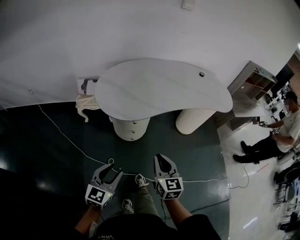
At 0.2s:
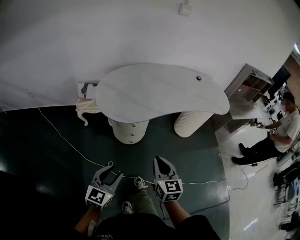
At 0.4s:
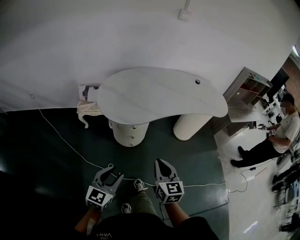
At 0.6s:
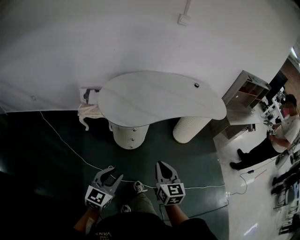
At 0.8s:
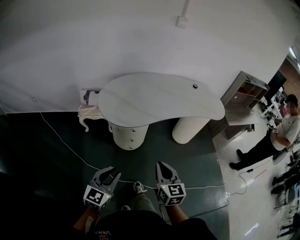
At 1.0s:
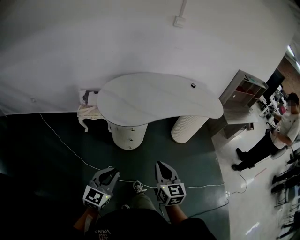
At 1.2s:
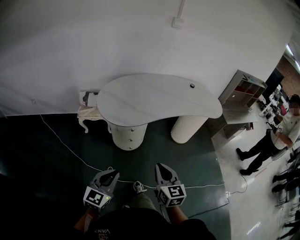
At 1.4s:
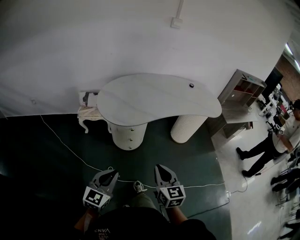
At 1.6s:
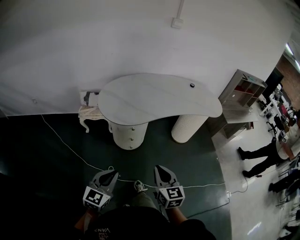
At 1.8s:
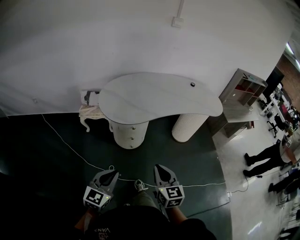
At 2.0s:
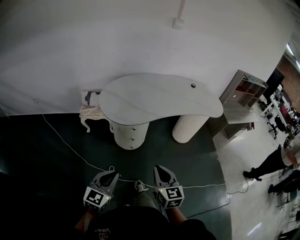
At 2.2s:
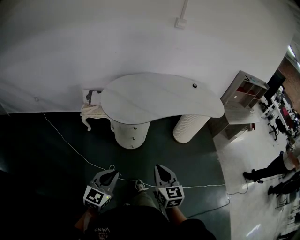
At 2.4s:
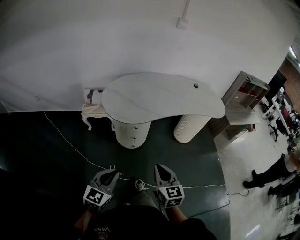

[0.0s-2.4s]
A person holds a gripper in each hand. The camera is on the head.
0.0s to 1.2s: The left gripper moves upward and backward, approximately 10 cm, and closes its fingers. The right gripper heads backward and upward, covering approximately 10 cm.
1.2s to 2.4s: The grippers stay close to where they were, moving slightly.

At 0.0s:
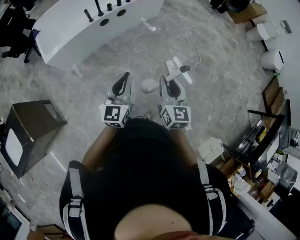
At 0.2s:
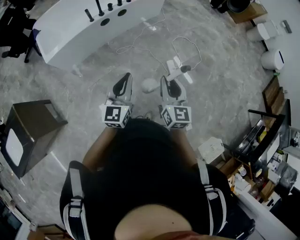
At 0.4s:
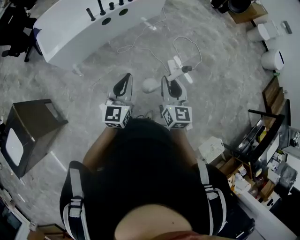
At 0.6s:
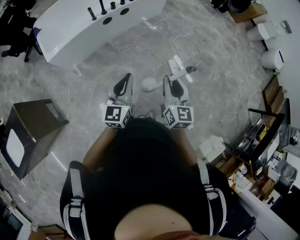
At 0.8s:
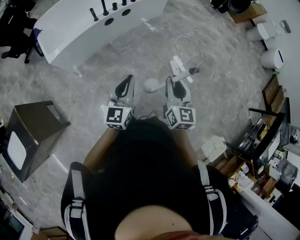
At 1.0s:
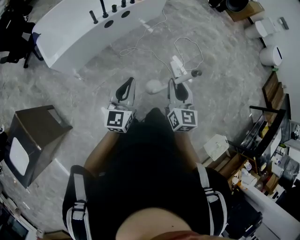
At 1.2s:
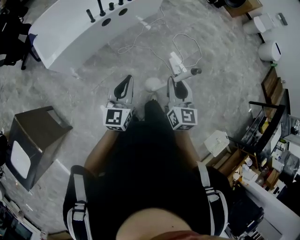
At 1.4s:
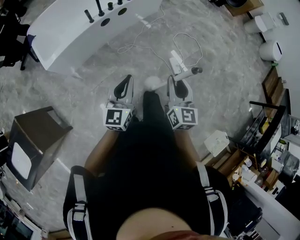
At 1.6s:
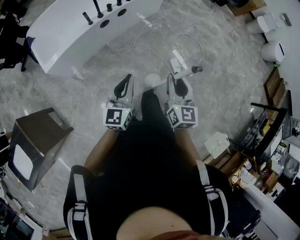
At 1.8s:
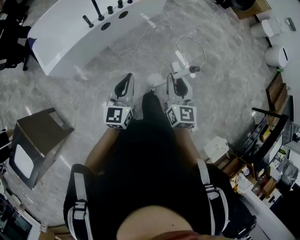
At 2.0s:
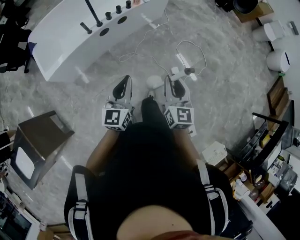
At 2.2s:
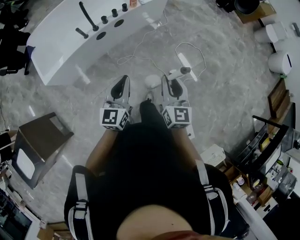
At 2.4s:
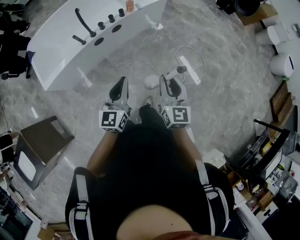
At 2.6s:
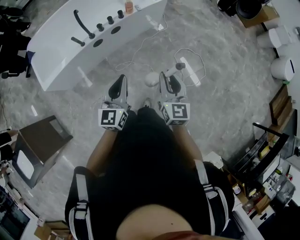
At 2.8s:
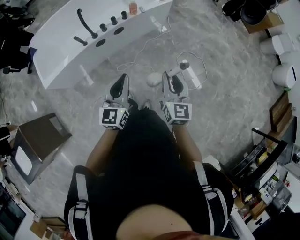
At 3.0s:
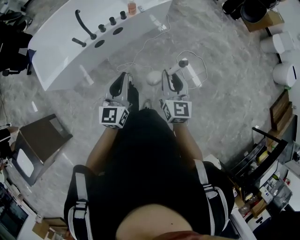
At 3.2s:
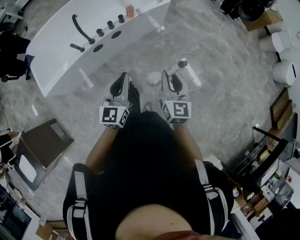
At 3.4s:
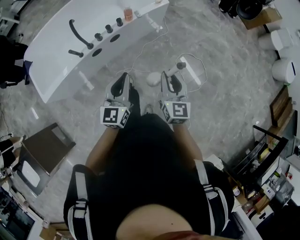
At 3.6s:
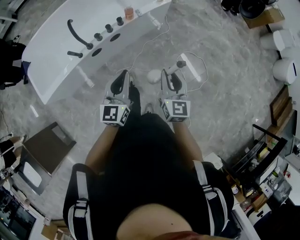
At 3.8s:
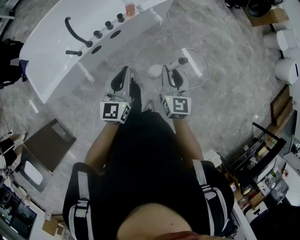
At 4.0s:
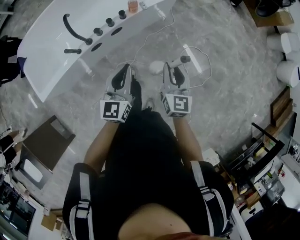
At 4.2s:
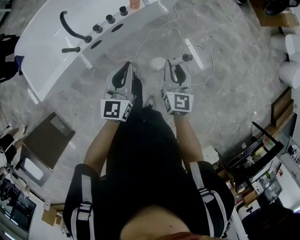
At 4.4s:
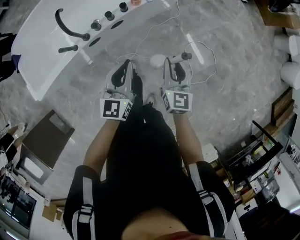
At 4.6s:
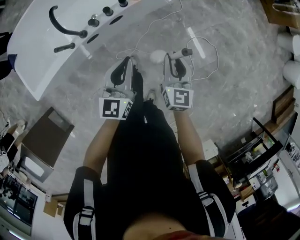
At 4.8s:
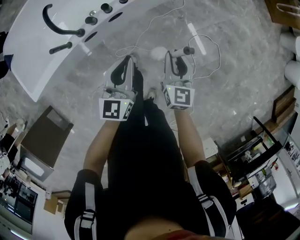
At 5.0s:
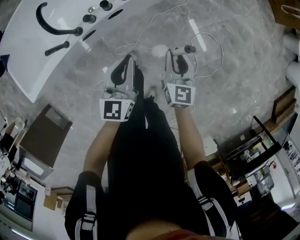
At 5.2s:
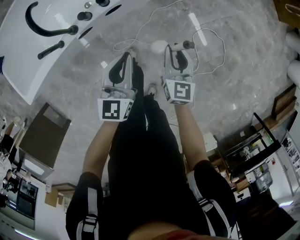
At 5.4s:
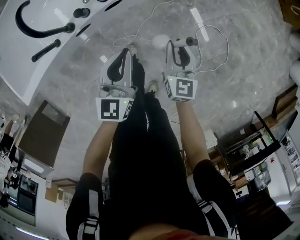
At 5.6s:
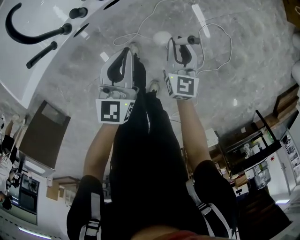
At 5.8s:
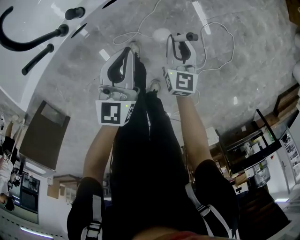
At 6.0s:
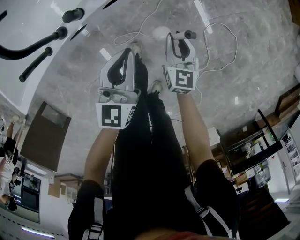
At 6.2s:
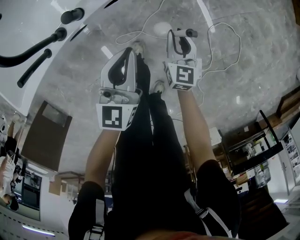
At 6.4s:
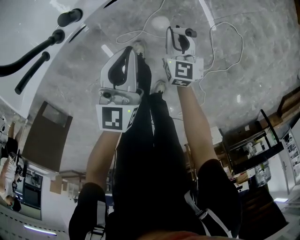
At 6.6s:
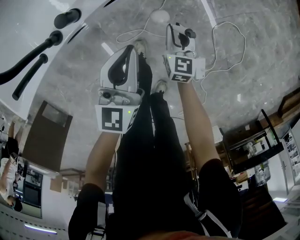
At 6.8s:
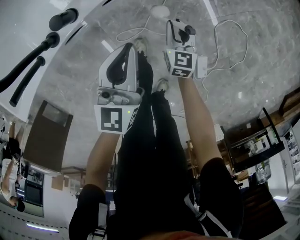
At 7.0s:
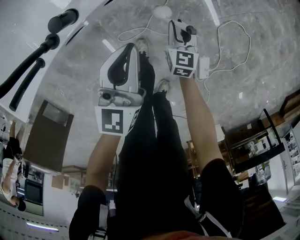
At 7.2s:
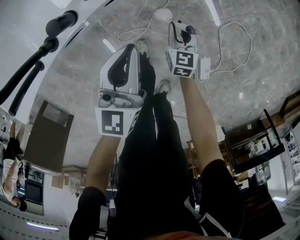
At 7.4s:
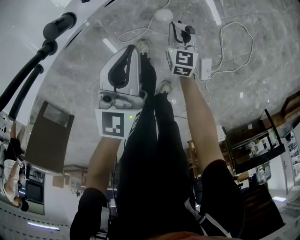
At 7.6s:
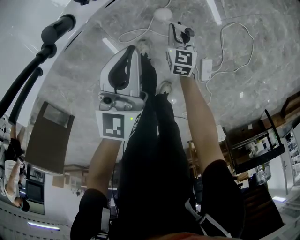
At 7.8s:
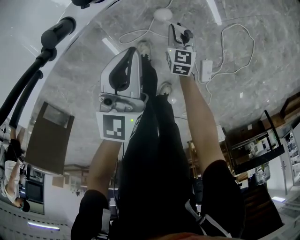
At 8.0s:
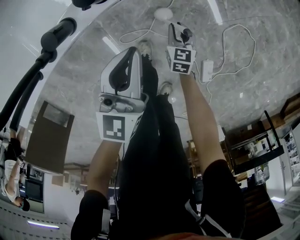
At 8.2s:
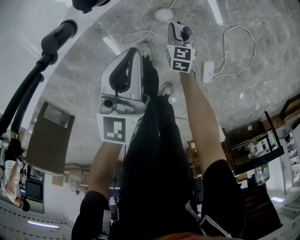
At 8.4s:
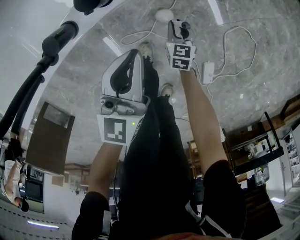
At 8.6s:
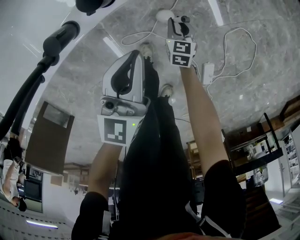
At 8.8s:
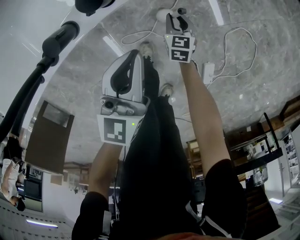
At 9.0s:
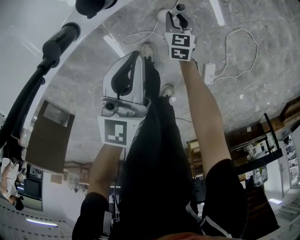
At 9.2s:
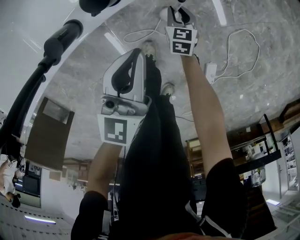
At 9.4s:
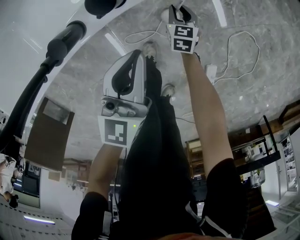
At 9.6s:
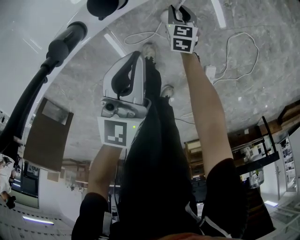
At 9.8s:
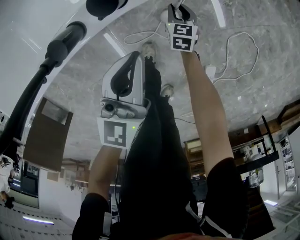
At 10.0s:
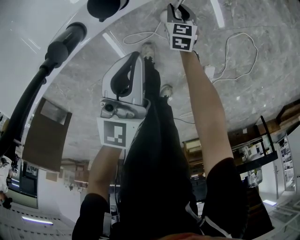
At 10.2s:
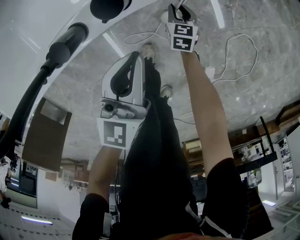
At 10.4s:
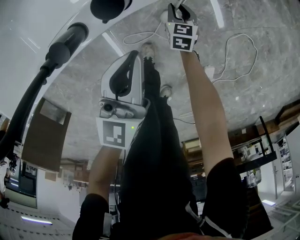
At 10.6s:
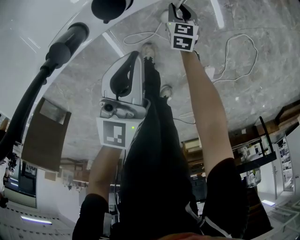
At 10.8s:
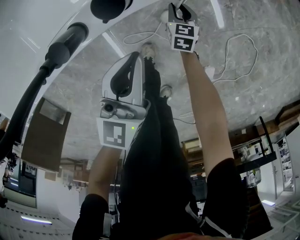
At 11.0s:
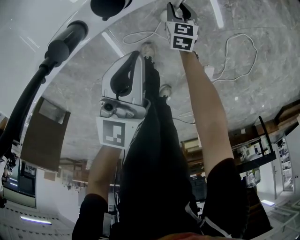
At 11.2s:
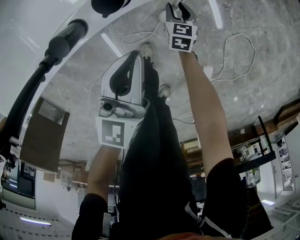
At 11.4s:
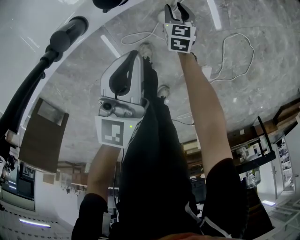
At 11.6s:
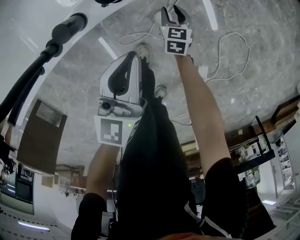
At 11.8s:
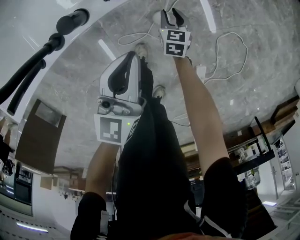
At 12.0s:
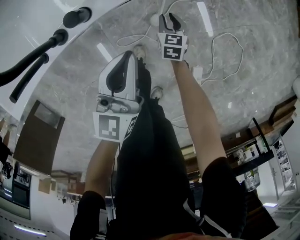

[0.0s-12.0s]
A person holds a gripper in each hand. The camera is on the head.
0.0s to 1.6s: The left gripper is displaced to the left and forward by some 10 cm. The right gripper is displaced forward and to the left by about 10 cm.
1.6s to 3.0s: Both grippers move forward, some 30 cm.
3.0s to 4.4s: Both grippers move forward and downward, some 25 cm.
4.4s to 6.0s: The right gripper goes approximately 30 cm downward, while the left gripper goes about 25 cm downward and forward.
6.0s to 7.6s: The left gripper shifts some 10 cm downward. The right gripper is displaced downward by approximately 25 cm.
7.6s to 9.0s: The right gripper is displaced forward and downward by approximately 10 cm.
9.0s to 10.4s: The right gripper changes place by roughly 5 cm.
10.4s to 12.0s: Both grippers travel together upward, about 10 cm.

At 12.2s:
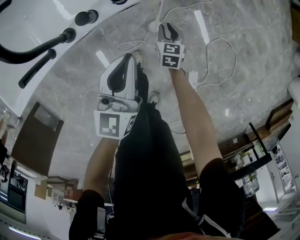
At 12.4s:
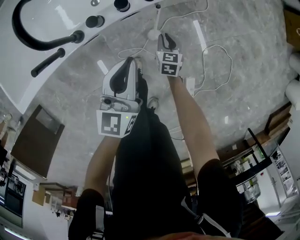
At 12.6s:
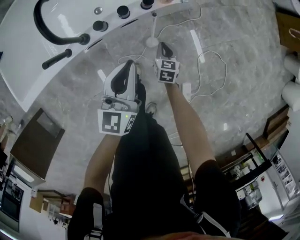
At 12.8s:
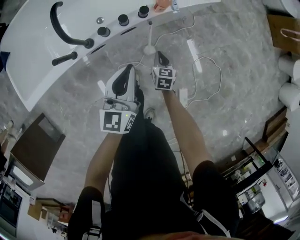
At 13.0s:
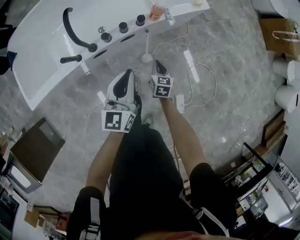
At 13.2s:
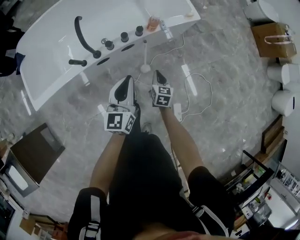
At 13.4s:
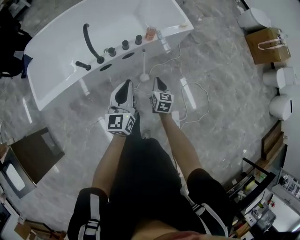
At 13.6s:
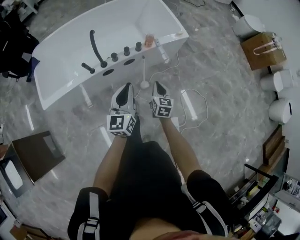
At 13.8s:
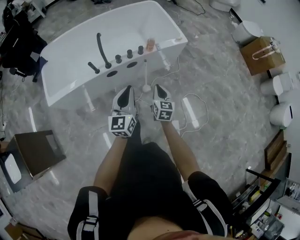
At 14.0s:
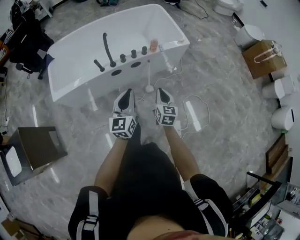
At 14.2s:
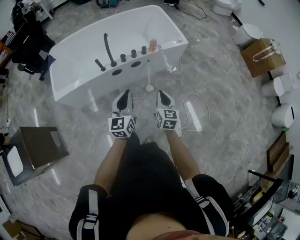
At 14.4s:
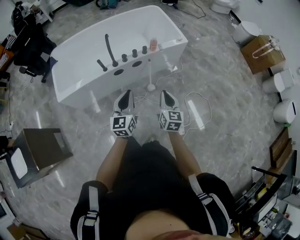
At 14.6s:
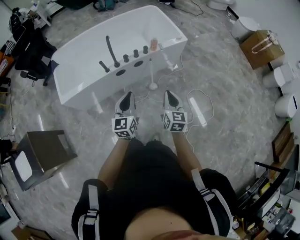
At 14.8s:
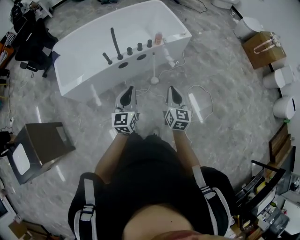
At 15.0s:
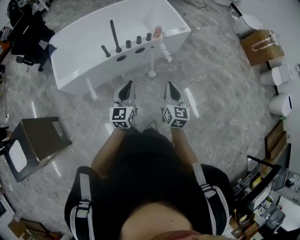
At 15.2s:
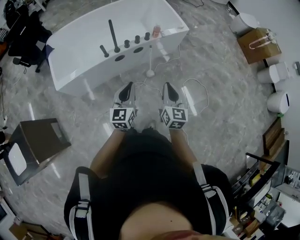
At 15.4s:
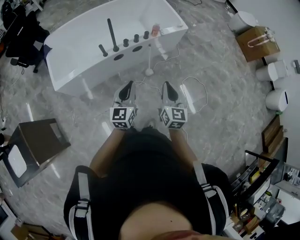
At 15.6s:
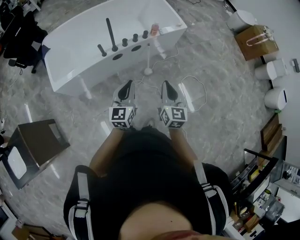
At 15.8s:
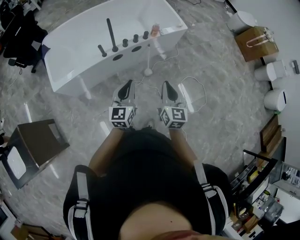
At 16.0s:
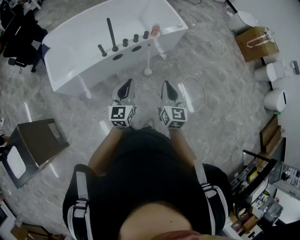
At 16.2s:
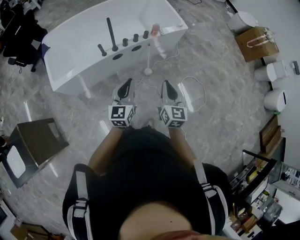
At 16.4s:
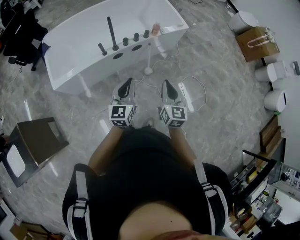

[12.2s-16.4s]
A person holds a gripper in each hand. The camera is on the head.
12.2s to 13.6s: Both grippers travel together upward and backward, roughly 40 cm. The right gripper turns by approximately 20 degrees, and closes.
13.6s to 15.0s: The right gripper shifts roughly 30 cm upward and backward, while the left gripper travels backward by roughly 15 cm.
15.0s to 16.4s: The grippers move only a little.

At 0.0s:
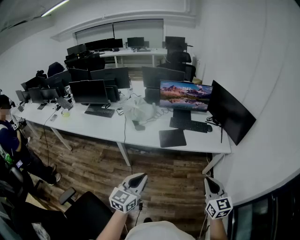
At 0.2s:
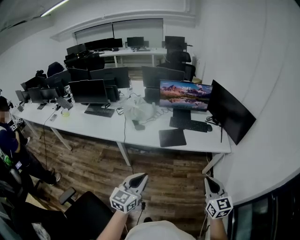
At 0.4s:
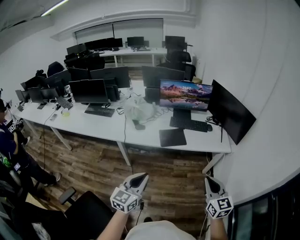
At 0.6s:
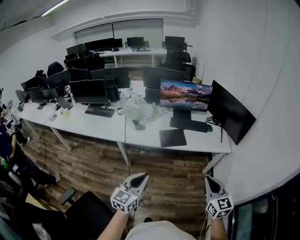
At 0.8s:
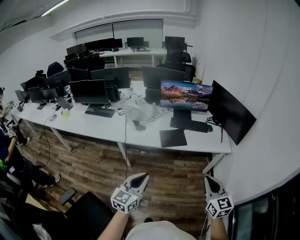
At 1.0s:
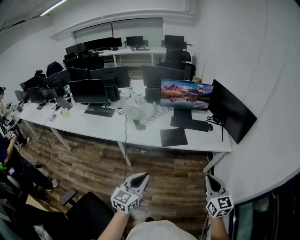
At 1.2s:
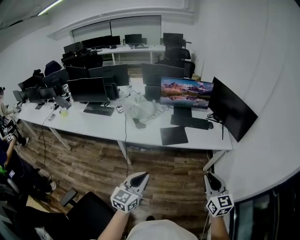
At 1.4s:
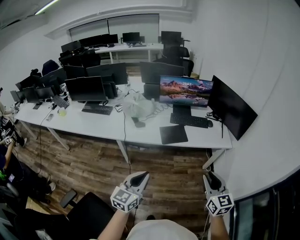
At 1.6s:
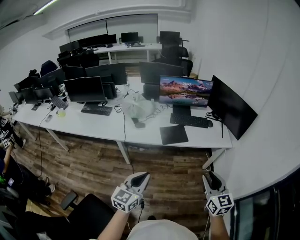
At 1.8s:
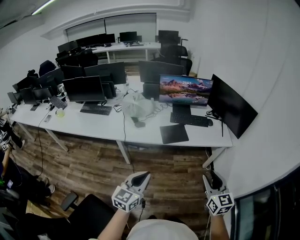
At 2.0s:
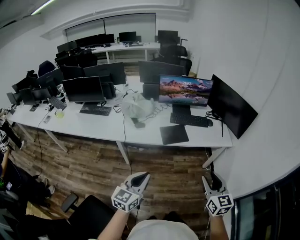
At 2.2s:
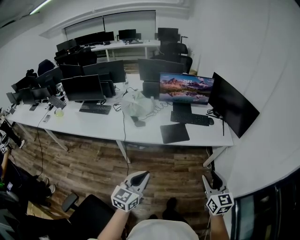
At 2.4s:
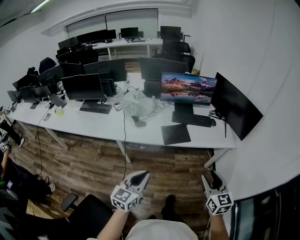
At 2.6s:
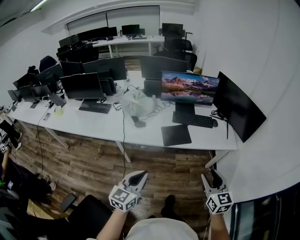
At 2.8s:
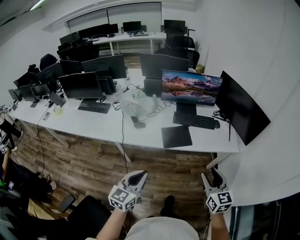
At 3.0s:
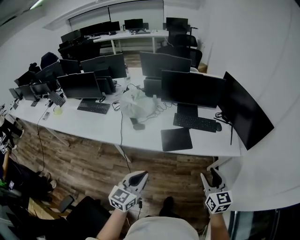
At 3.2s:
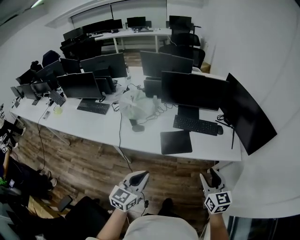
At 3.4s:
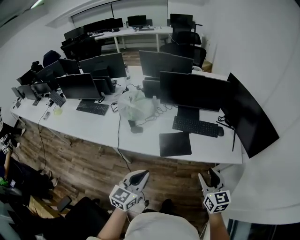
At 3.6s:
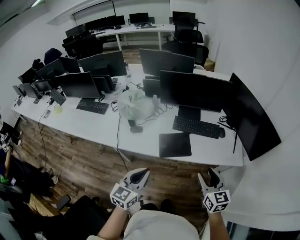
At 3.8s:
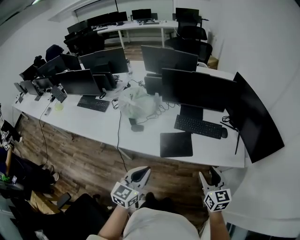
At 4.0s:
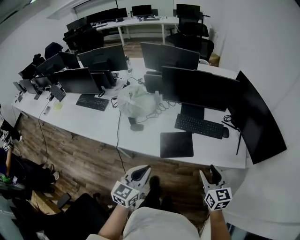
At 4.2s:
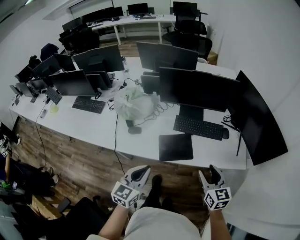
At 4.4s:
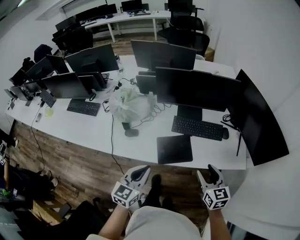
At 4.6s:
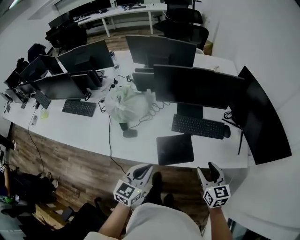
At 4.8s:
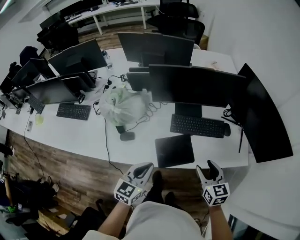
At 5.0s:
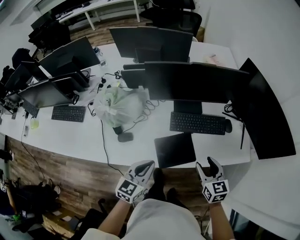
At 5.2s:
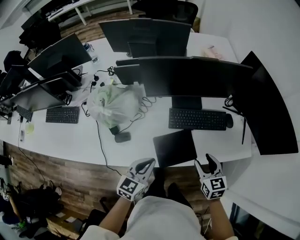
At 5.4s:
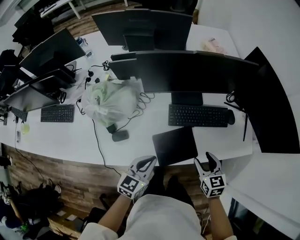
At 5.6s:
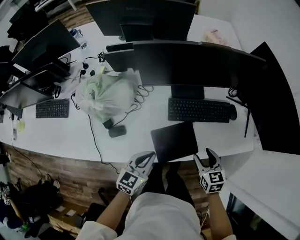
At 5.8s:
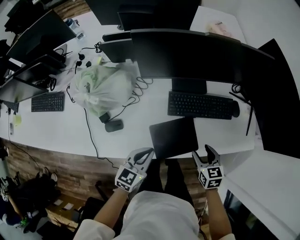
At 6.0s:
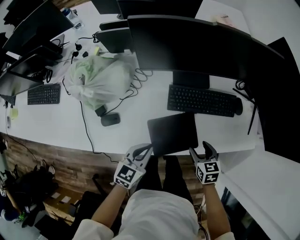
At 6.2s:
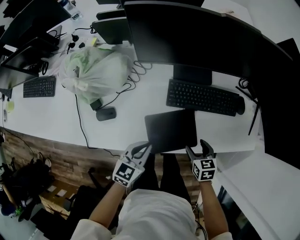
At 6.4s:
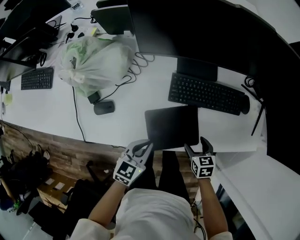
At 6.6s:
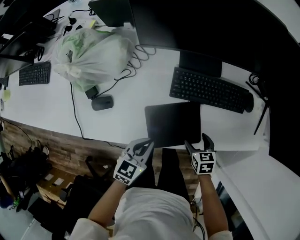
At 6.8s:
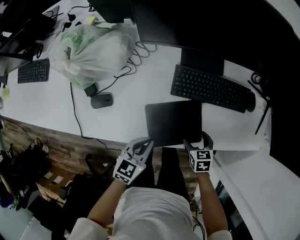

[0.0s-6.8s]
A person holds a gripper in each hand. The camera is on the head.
0.0s to 1.4s: The grippers move only a little.
1.4s to 2.8s: Both grippers travel together forward, some 15 cm.
2.8s to 4.0s: Both grippers move forward, approximately 20 cm.
4.0s to 5.4s: The right gripper travels forward, downward and to the left by about 25 cm, and turns by approximately 20 degrees, while the left gripper travels forward and downward by some 30 cm, and rotates roughly 20 degrees.
5.4s to 6.8s: The grippers both shift downward by approximately 20 cm. The right gripper rotates roughly 30 degrees, and opens its fingers.
